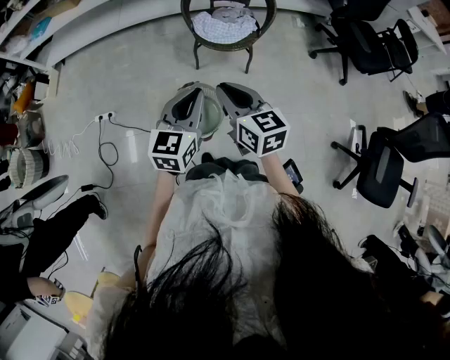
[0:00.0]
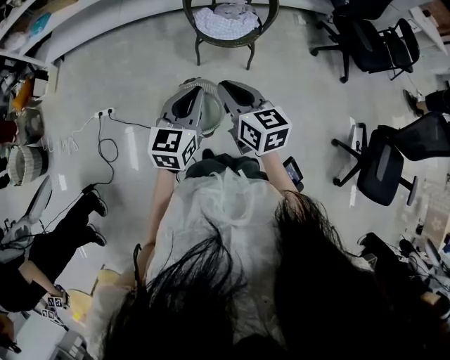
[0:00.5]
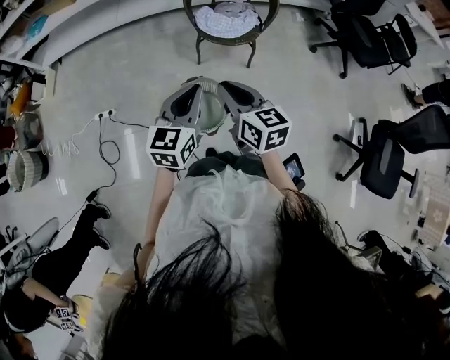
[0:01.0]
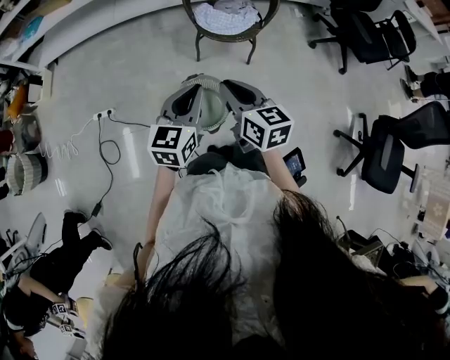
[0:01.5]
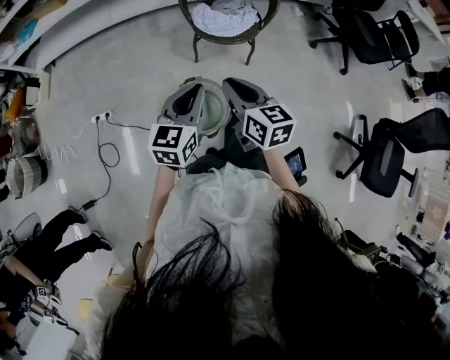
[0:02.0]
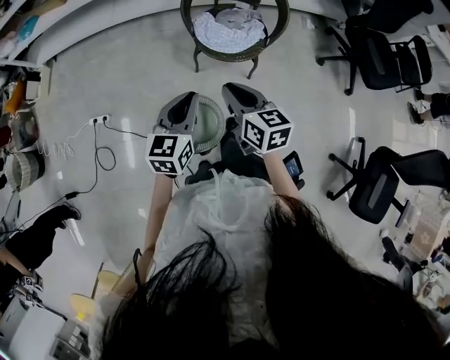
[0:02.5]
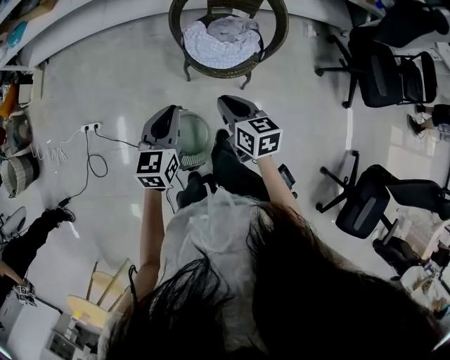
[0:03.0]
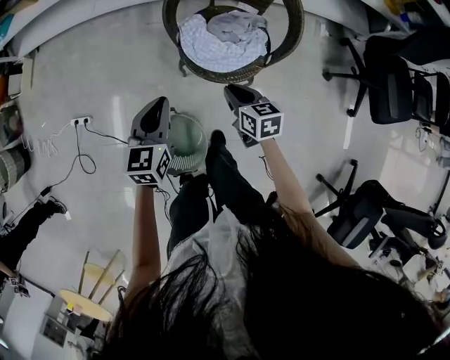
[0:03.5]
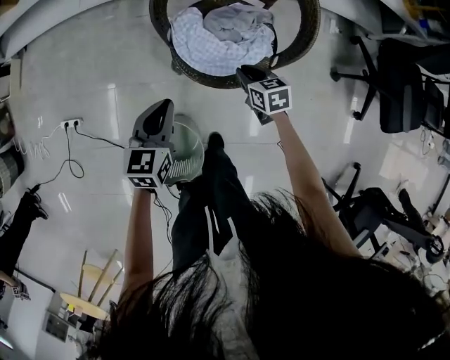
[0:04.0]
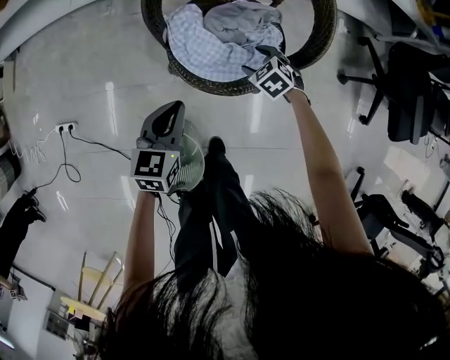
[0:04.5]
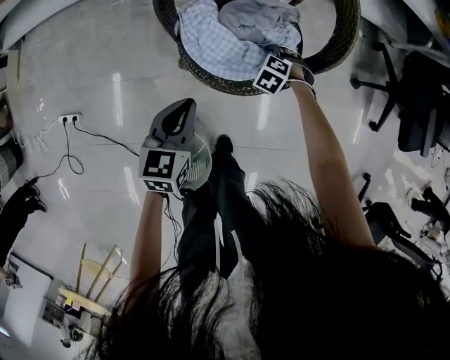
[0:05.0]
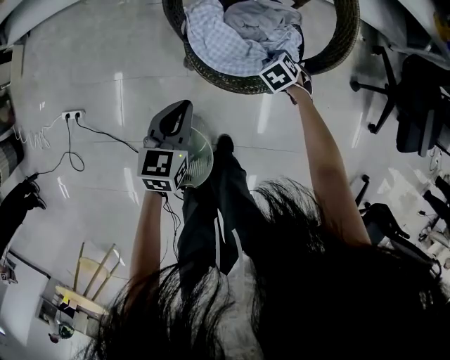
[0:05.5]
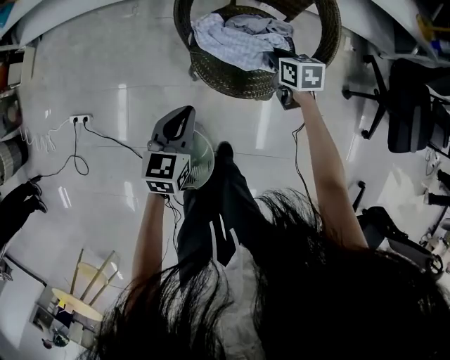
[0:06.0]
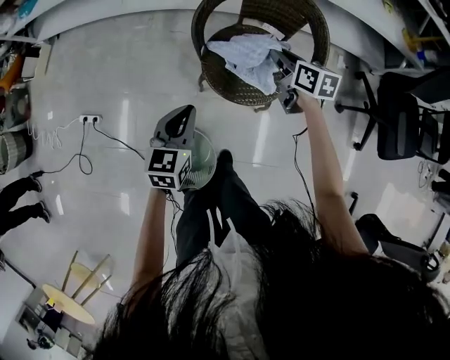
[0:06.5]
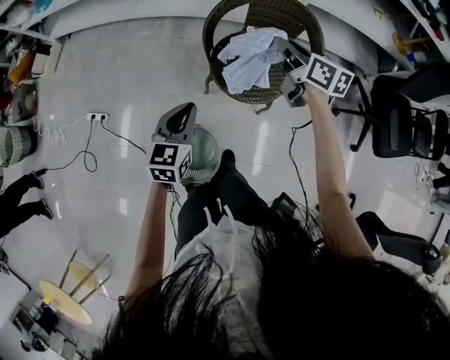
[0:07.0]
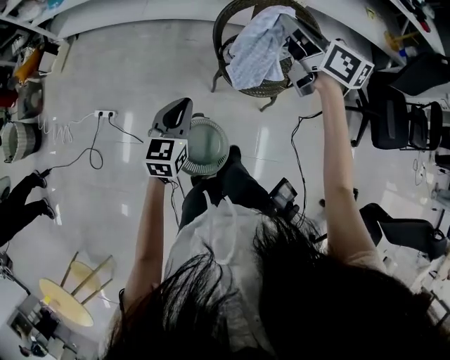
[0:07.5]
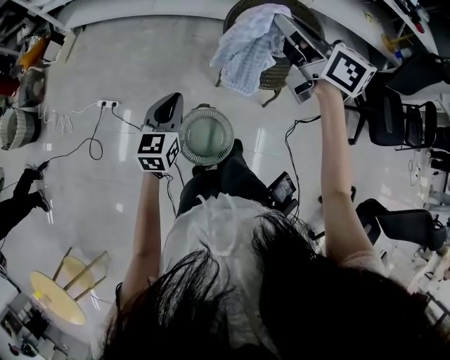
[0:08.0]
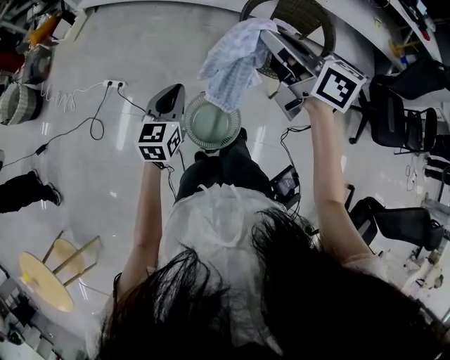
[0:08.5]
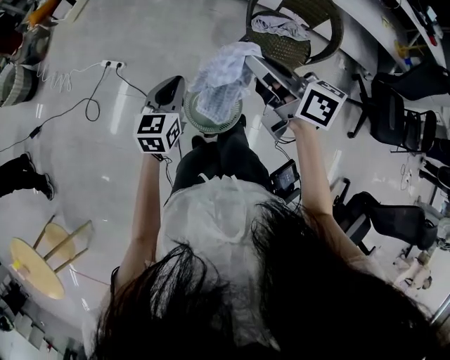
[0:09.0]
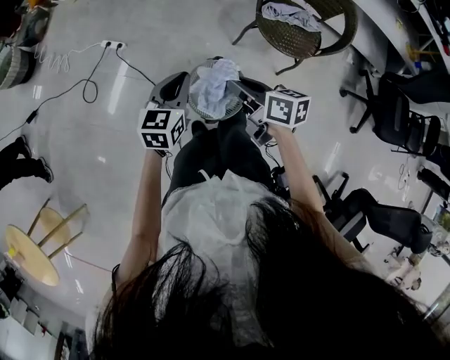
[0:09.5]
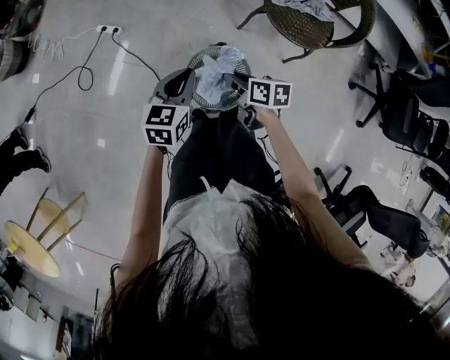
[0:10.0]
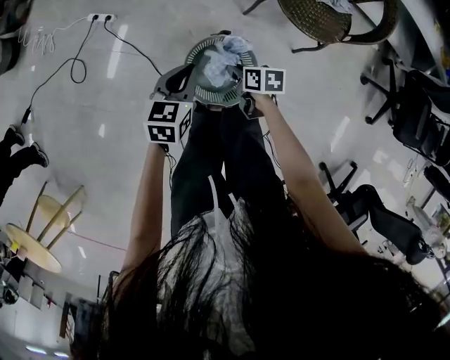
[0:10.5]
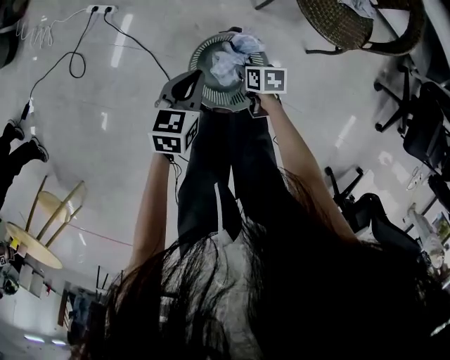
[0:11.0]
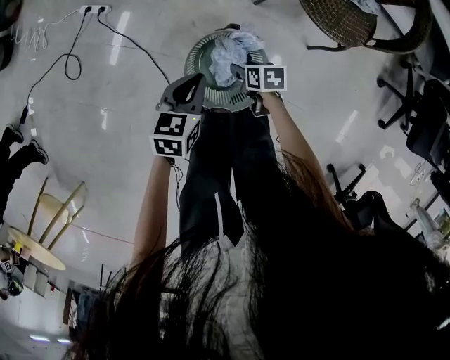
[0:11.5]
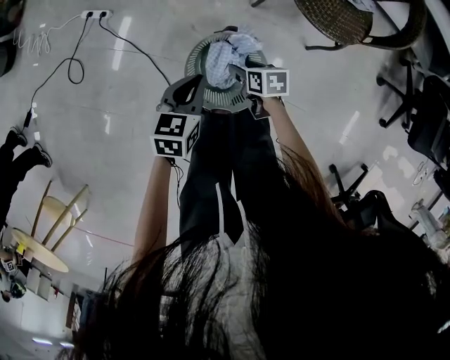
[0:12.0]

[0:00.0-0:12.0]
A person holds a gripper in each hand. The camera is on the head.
0:00.0 to 0:02.0: The left gripper shifts by approximately 5 cm. The right gripper shifts by approximately 5 cm.
0:02.0 to 0:04.0: The left gripper travels forward and downward by about 40 cm, and changes its angle by roughly 20 degrees. Meanwhile the right gripper heads forward, downward and to the right, covering approximately 60 cm, and rotates some 30 degrees.
0:04.0 to 0:06.0: The left gripper moves approximately 10 cm downward and comes back. Meanwhile the right gripper goes downward and returns, roughly 15 cm each way, and opens, then closes once more.
0:06.0 to 0:08.0: The right gripper travels upward and to the left by approximately 60 cm, and angles its fingers upward, by some 40 degrees, while the left gripper goes some 35 cm to the left, upward and backward.
0:08.0 to 0:10.0: The left gripper travels downward, backward and to the left by approximately 20 cm; the right gripper is displaced downward and to the left by about 50 cm, and tilts its fingers roughly 40 degrees downward.
0:10.0 to 0:12.0: The grippers both shift downward by roughly 20 cm. The right gripper opens.

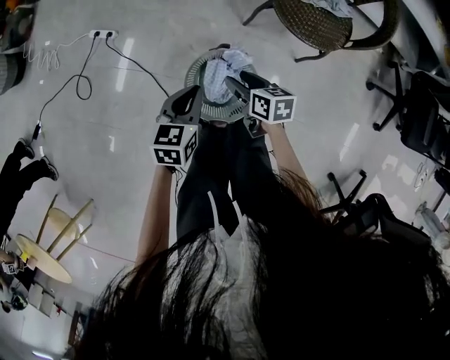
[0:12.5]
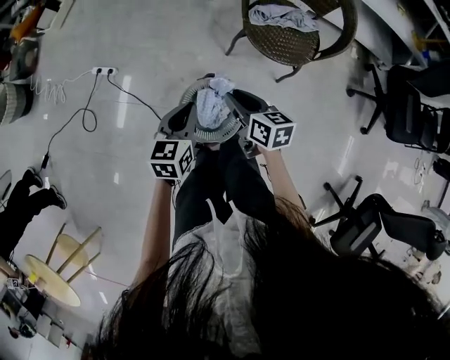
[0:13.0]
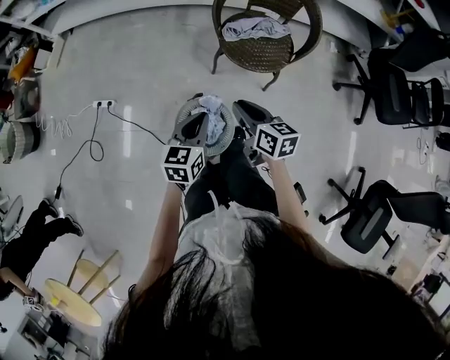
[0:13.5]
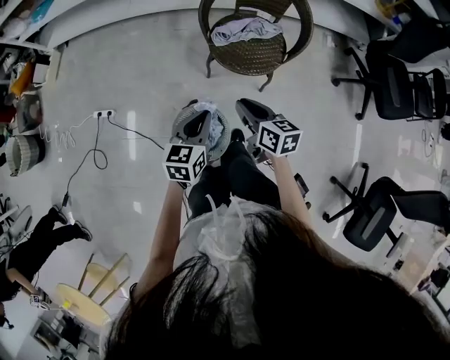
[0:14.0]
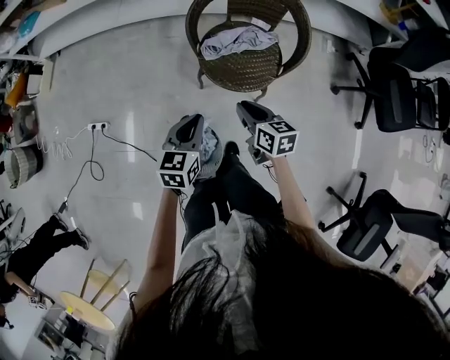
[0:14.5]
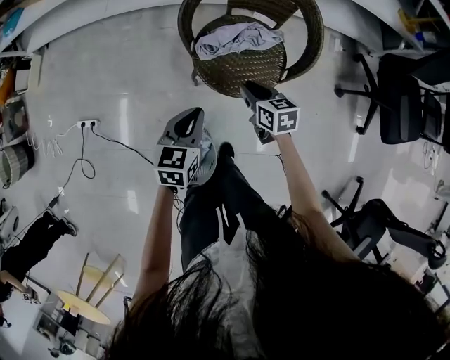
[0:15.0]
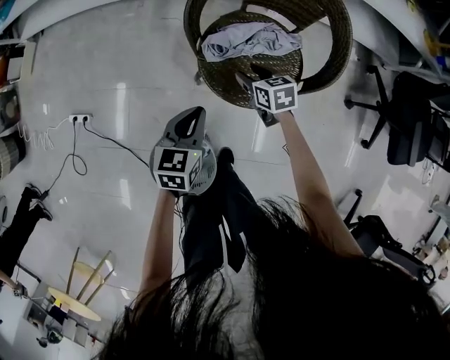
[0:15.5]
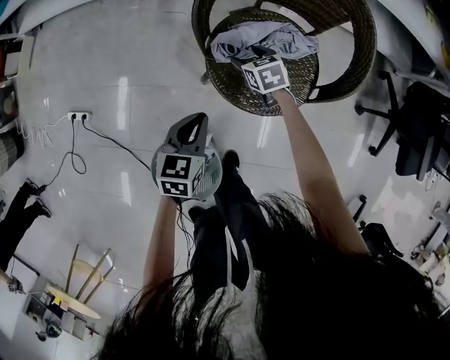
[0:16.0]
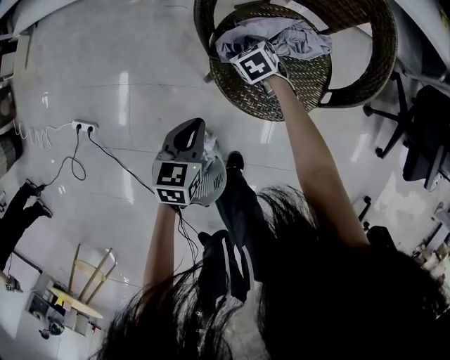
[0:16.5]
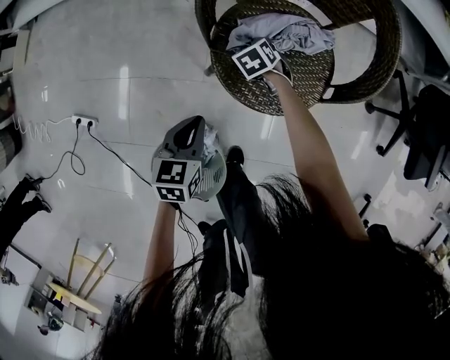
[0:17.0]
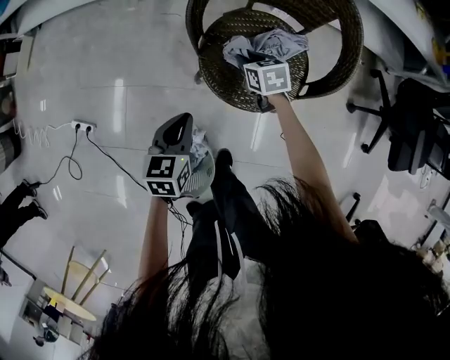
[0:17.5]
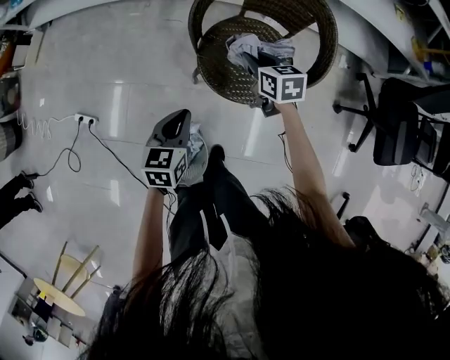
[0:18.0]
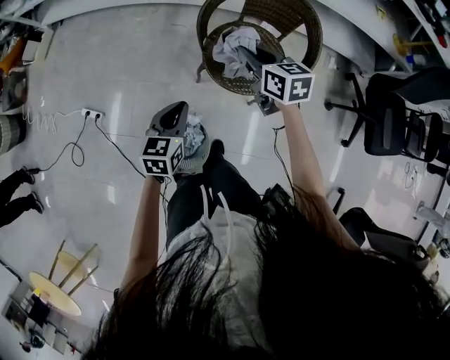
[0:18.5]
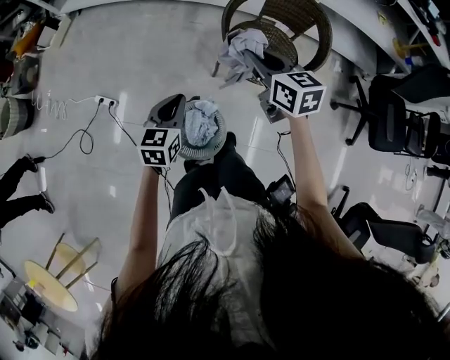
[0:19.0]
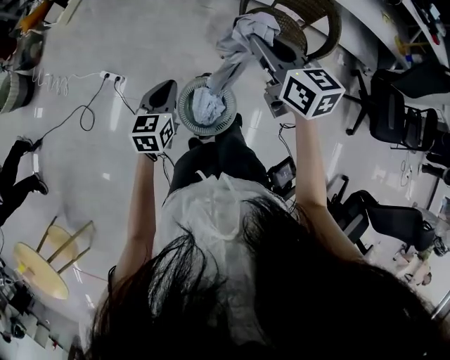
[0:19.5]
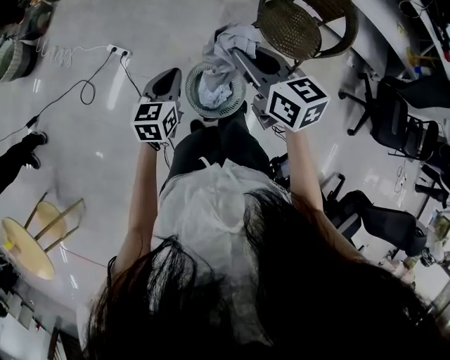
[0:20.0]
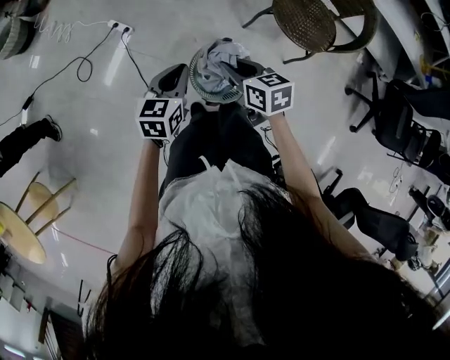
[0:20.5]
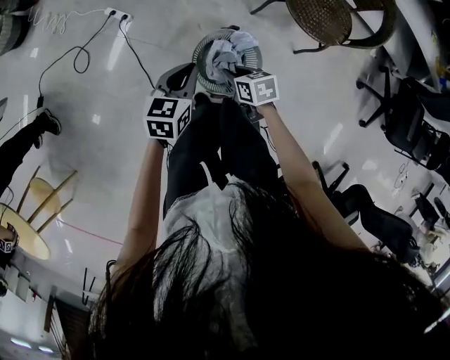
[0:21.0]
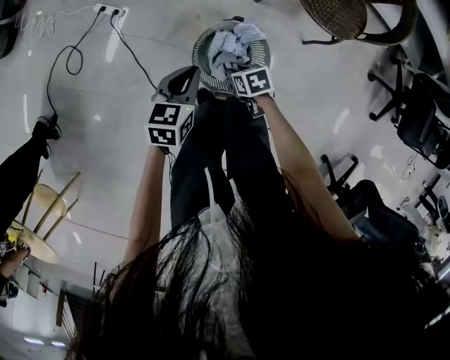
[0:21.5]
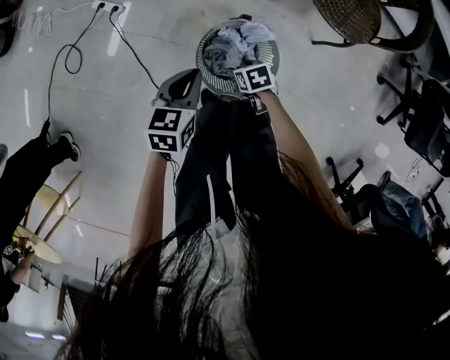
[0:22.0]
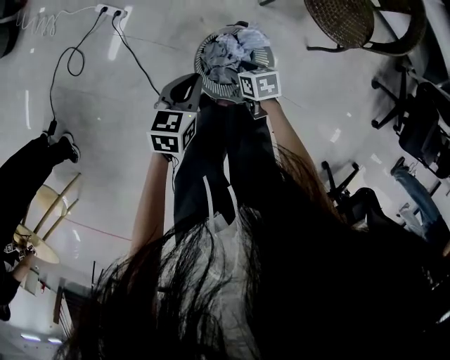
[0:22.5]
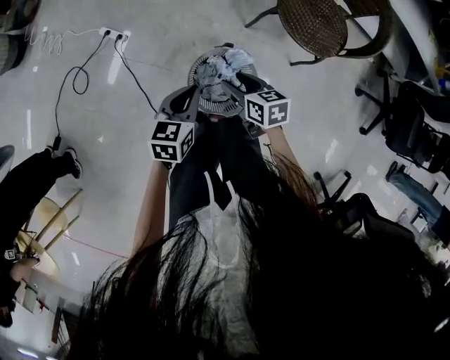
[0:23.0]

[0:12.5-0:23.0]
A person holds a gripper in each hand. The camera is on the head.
0:12.5 to 0:14.5: The right gripper goes roughly 30 cm to the right, upward and forward, turns by approximately 20 degrees, and closes; the left gripper moves to the right, forward and upward, approximately 30 cm.
0:14.5 to 0:16.5: The left gripper goes about 25 cm downward and forward; the right gripper moves downward and forward, roughly 50 cm, tilts its fingers about 30 degrees downward, and opens up.
0:16.5 to 0:19.0: The left gripper travels upward, backward and to the left by about 35 cm. Meanwhile the right gripper moves upward and backward, roughly 60 cm, tips its fingers upward by roughly 40 degrees, and closes its fingers.
0:19.0 to 0:21.0: The left gripper moves to the left, backward and downward, about 25 cm. Meanwhile the right gripper shifts approximately 50 cm downward, to the left and backward, and turns by some 40 degrees.
0:21.0 to 0:23.0: The right gripper moves forward, approximately 5 cm, travels downward and back again, approximately 20 cm each way, and opens its fingers; the left gripper goes downward and returns, some 10 cm each way.

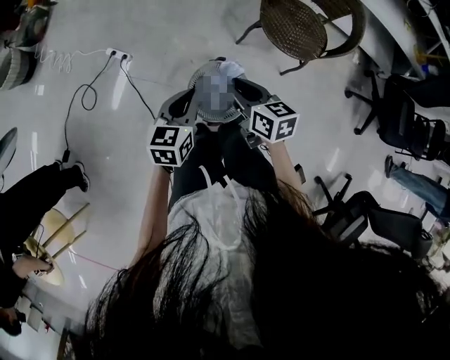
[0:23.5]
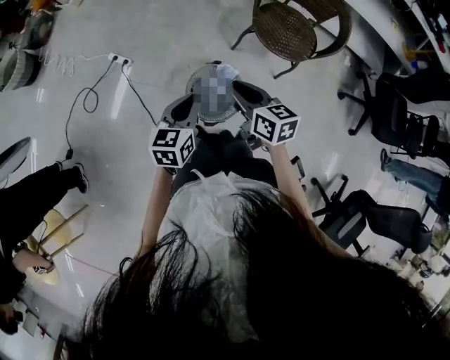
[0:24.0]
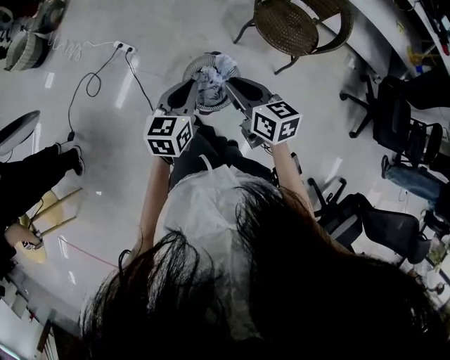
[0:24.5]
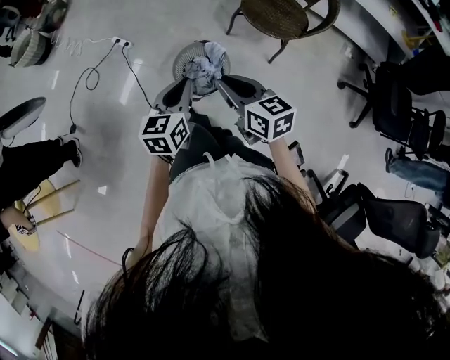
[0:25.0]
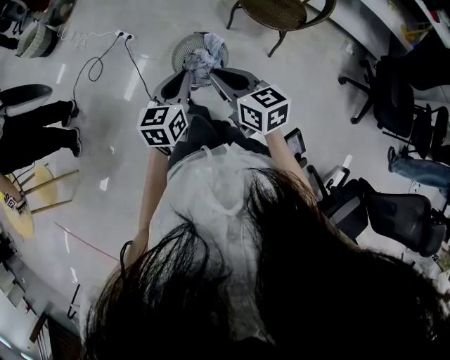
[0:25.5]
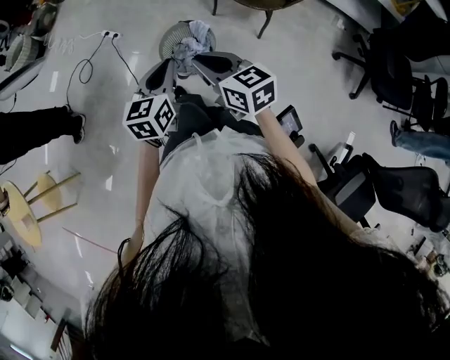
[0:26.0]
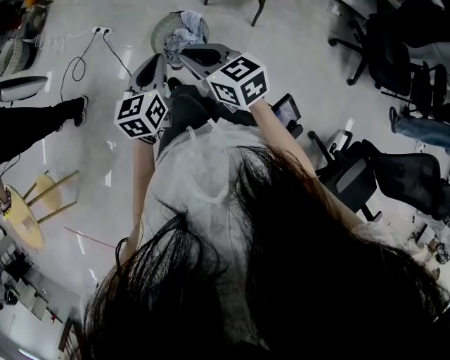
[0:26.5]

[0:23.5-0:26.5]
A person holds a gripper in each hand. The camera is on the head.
0:23.5 to 0:25.0: The left gripper moves backward, to the right and upward, some 20 cm. Meanwhile the right gripper heads backward and upward, covering approximately 20 cm.
0:25.0 to 0:26.5: Both grippers move backward, roughly 10 cm.

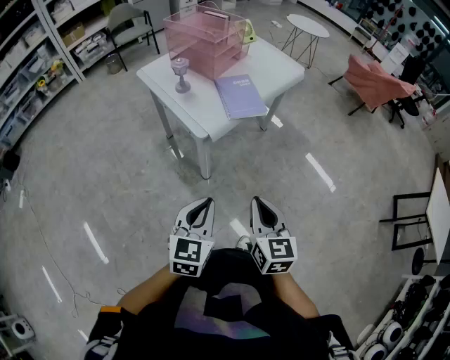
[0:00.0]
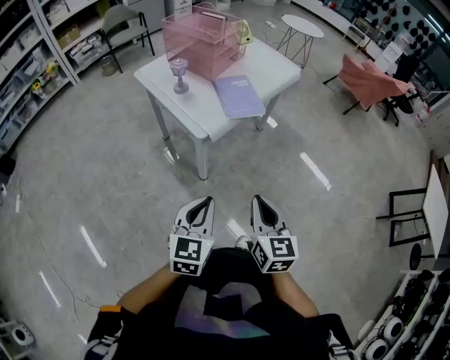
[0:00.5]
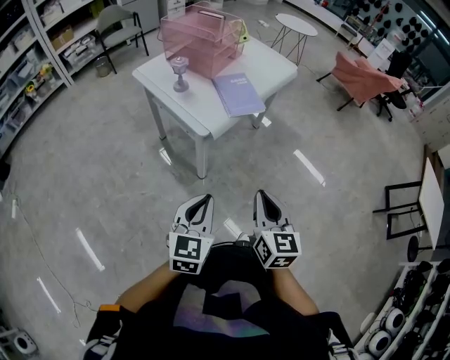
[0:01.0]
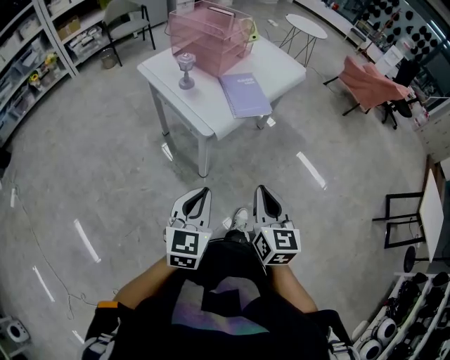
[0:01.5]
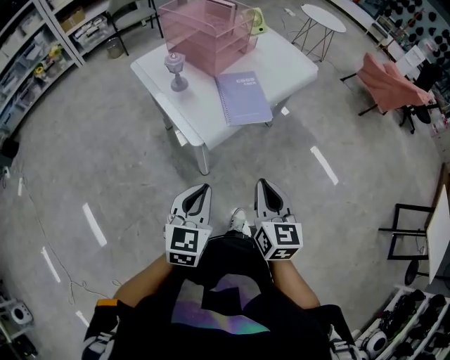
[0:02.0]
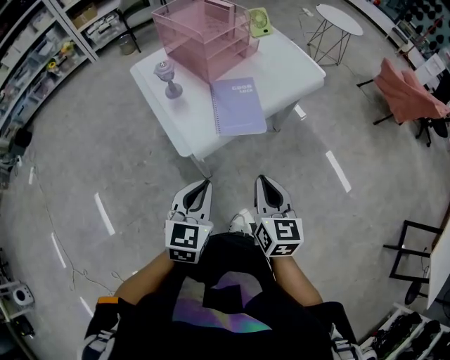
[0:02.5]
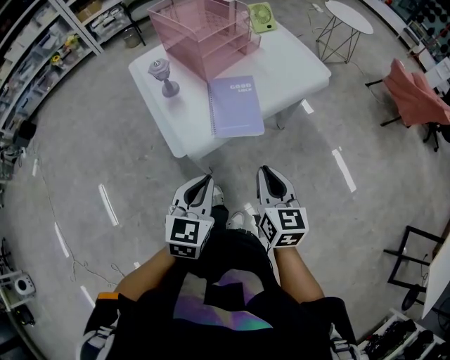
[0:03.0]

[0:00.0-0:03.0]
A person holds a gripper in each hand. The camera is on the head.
0:00.0 to 0:01.5: The left gripper is displaced to the left by some 5 cm.
0:01.5 to 0:03.0: The two grippers go some 25 cm forward and to the right.
